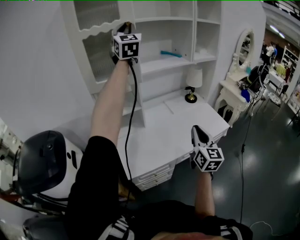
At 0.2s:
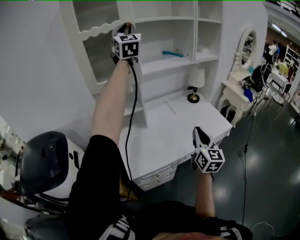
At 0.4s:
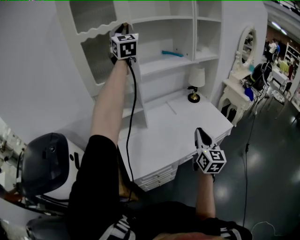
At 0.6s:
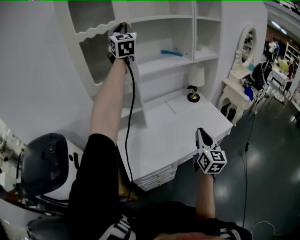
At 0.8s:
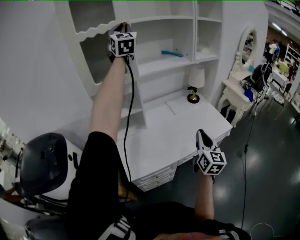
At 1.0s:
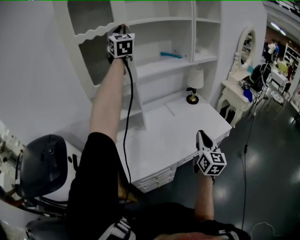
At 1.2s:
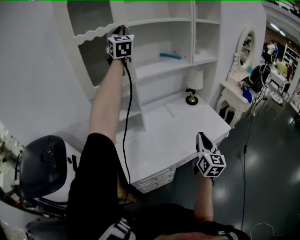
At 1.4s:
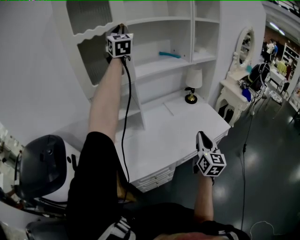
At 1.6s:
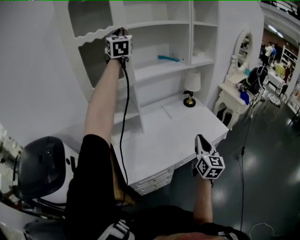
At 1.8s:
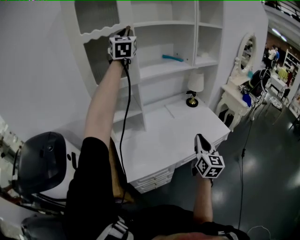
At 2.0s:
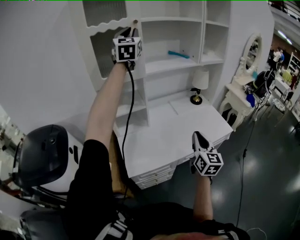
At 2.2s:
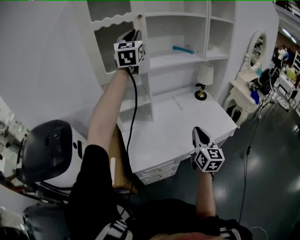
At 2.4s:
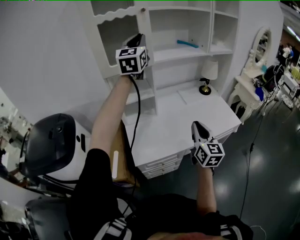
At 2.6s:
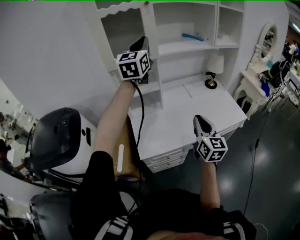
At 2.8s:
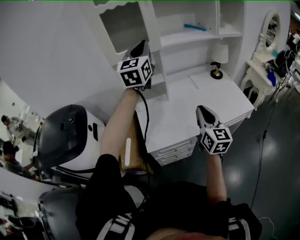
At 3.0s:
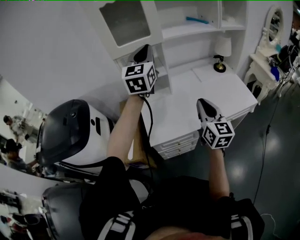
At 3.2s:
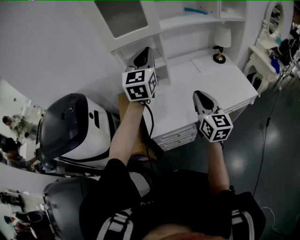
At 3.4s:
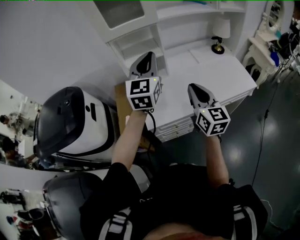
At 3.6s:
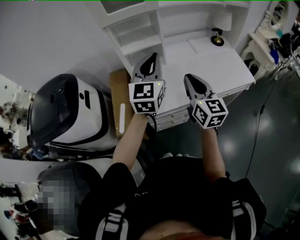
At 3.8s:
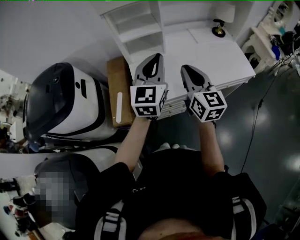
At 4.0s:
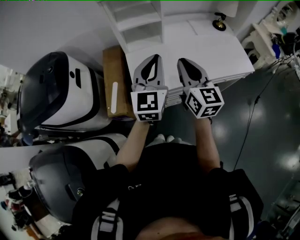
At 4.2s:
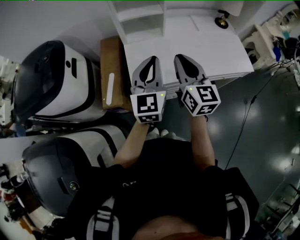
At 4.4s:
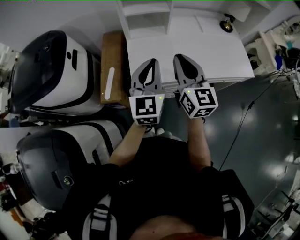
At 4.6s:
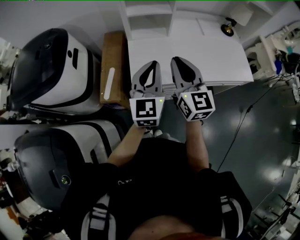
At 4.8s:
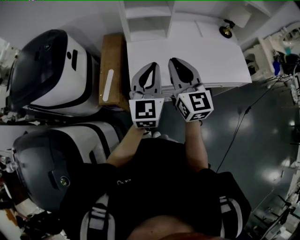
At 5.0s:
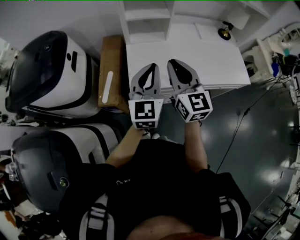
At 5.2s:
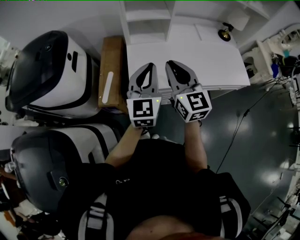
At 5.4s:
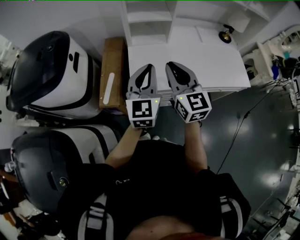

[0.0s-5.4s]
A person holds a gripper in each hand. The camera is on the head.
0.0s to 1.4s: The left gripper heads forward, covering some 5 cm.
1.4s to 2.8s: The left gripper goes approximately 25 cm downward and backward, and changes its angle by some 20 degrees. Meanwhile the right gripper moves to the left, some 10 cm.
2.8s to 4.0s: The right gripper goes about 10 cm to the left; the left gripper moves downward and backward, roughly 30 cm.
4.0s to 5.4s: The grippers both shift to the left by some 5 cm.

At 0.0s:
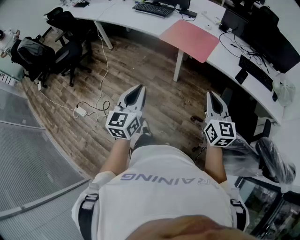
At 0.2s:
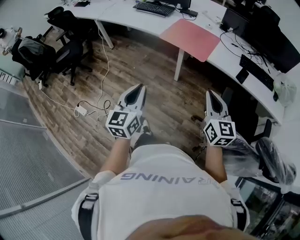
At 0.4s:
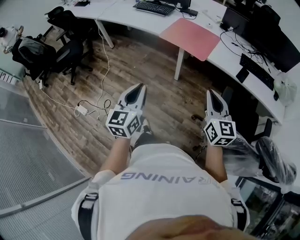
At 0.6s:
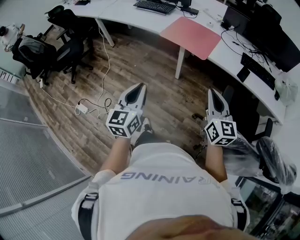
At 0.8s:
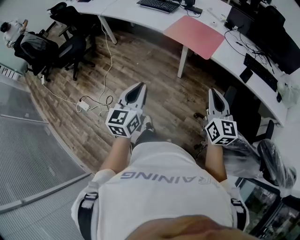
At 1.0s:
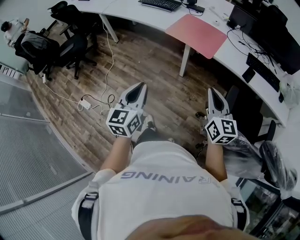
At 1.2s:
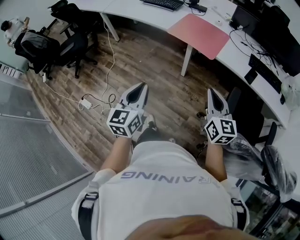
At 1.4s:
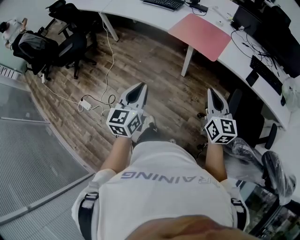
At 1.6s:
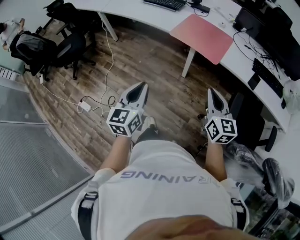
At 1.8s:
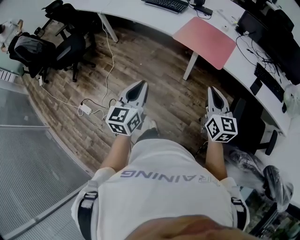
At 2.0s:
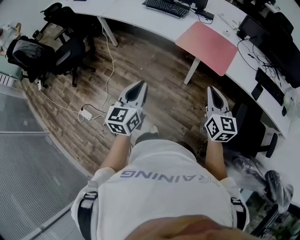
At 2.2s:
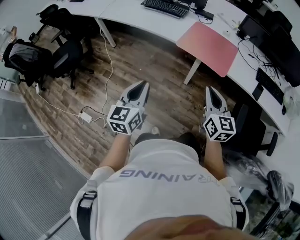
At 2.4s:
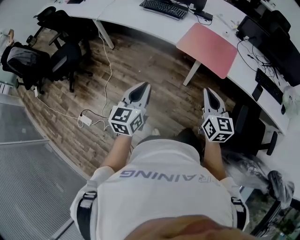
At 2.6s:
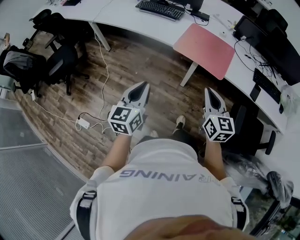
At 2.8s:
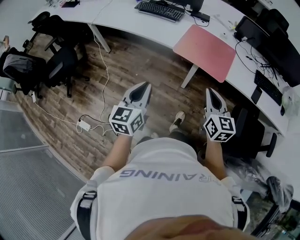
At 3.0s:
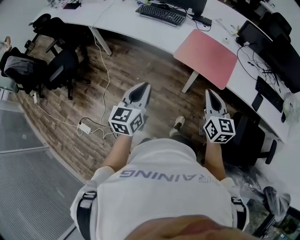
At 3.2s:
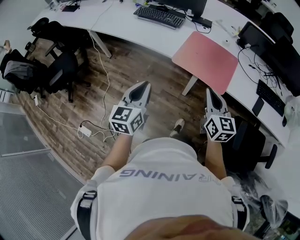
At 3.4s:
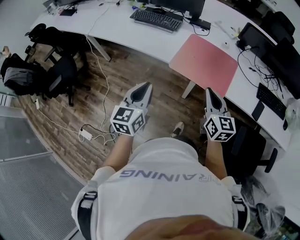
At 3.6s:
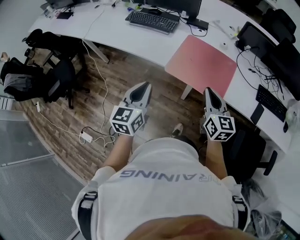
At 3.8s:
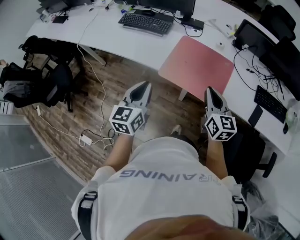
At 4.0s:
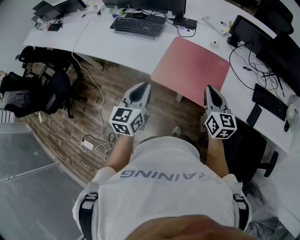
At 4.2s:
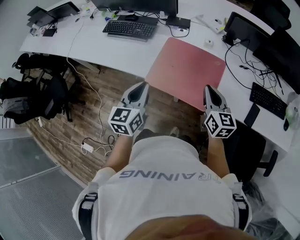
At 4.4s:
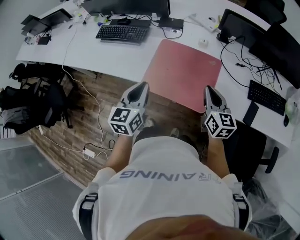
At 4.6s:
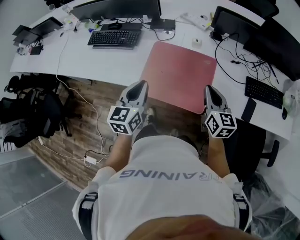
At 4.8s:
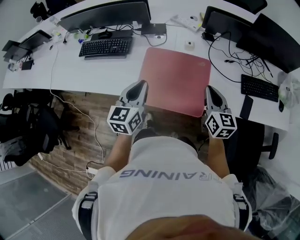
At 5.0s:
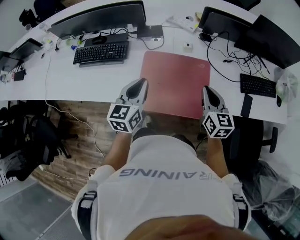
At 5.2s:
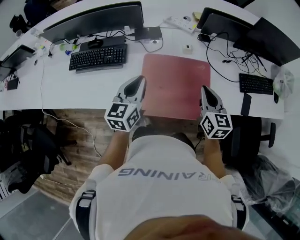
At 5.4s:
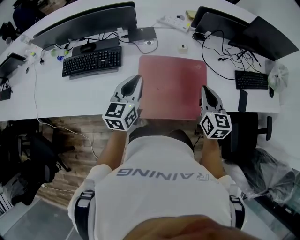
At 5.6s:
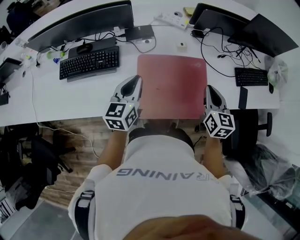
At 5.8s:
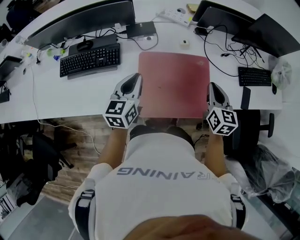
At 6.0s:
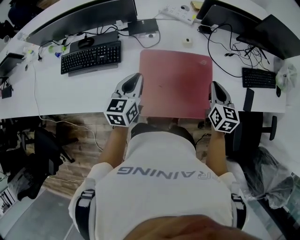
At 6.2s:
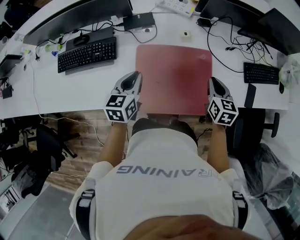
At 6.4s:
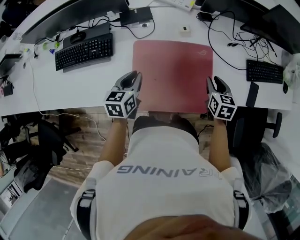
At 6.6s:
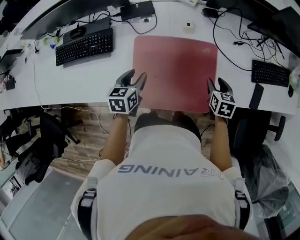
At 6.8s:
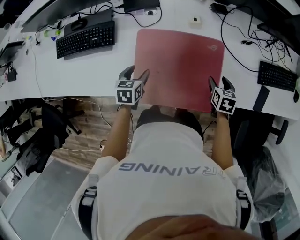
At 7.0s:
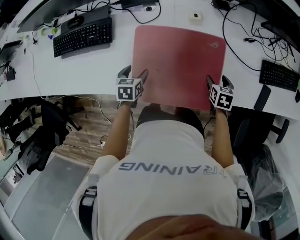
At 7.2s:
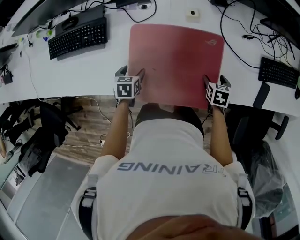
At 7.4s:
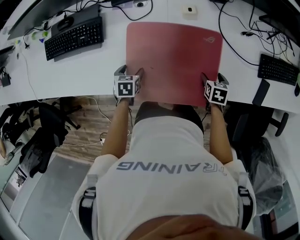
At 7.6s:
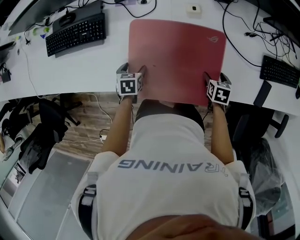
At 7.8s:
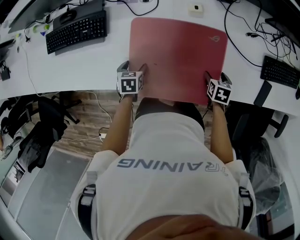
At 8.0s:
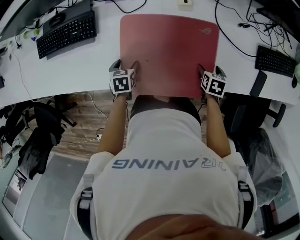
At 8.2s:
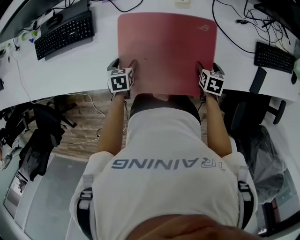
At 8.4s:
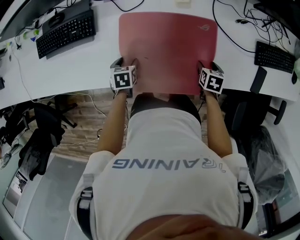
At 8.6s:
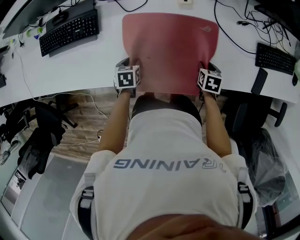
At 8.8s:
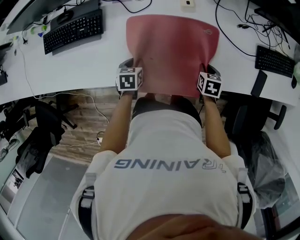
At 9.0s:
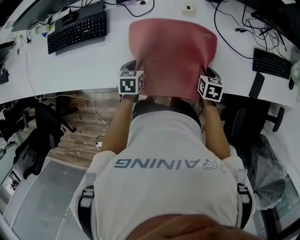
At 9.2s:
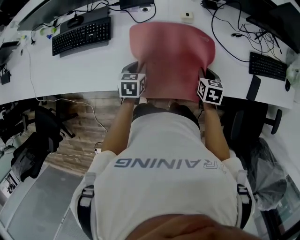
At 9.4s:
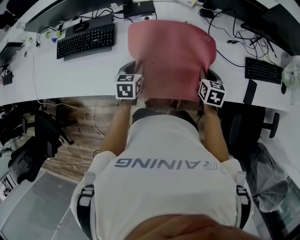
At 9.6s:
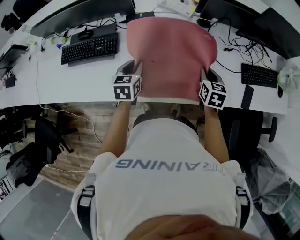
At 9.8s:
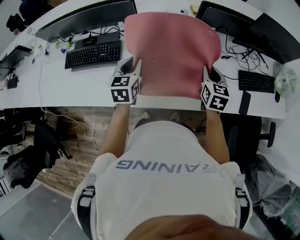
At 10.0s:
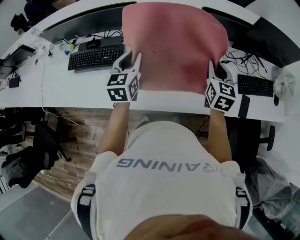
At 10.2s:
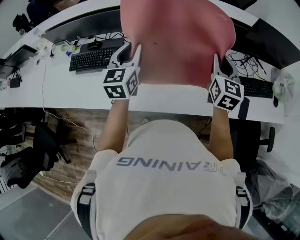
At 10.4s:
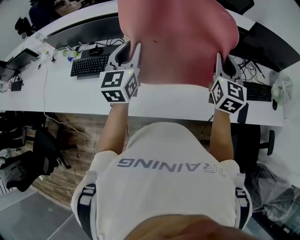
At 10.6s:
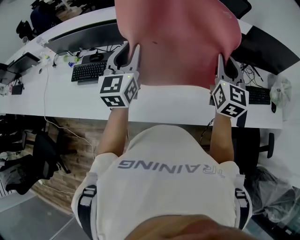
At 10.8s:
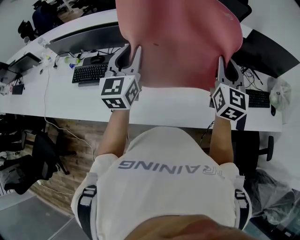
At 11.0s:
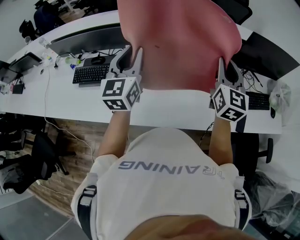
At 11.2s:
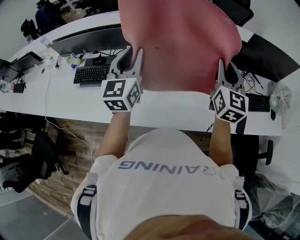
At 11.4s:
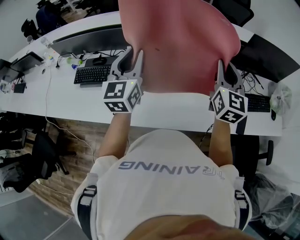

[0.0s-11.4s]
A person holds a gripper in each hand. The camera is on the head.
0.0s to 1.4s: The right gripper shifts approximately 5 cm forward. Meanwhile the left gripper ends up approximately 5 cm from where it was.
1.4s to 2.8s: Both grippers move forward and to the left, about 25 cm.
2.8s to 4.2s: Both grippers travel together forward and to the right, about 35 cm.
4.2s to 5.6s: The right gripper ends up about 10 cm from where it was, and changes its angle by some 30 degrees, while the left gripper changes place by about 25 cm, and swivels approximately 20 degrees.
5.6s to 7.2s: The grippers both shift downward by about 30 cm. The left gripper angles its fingers downward, by roughly 50 degrees, and opens its fingers. The right gripper tips its fingers downward by roughly 40 degrees, and opens up.
7.2s to 8.6s: The left gripper closes up; the right gripper closes.
8.6s to 10.0s: Both grippers travel together upward, approximately 35 cm. The right gripper tilts its fingers roughly 50 degrees upward. Meanwhile the left gripper points its fingers some 50 degrees further upward.
10.0s to 11.4s: The two grippers go approximately 15 cm upward. The left gripper changes its angle by approximately 20 degrees.

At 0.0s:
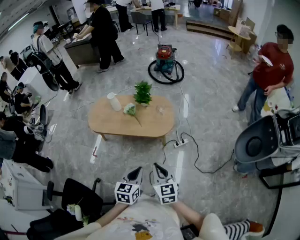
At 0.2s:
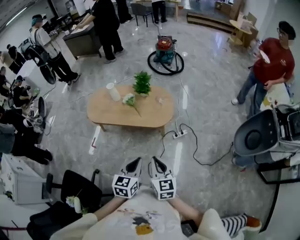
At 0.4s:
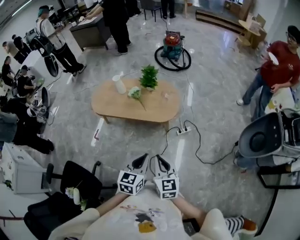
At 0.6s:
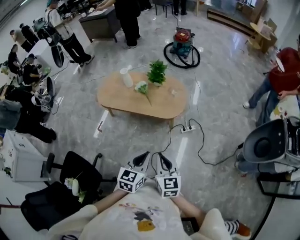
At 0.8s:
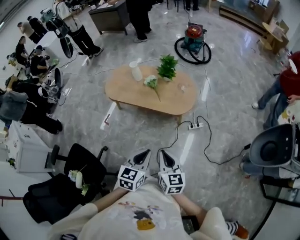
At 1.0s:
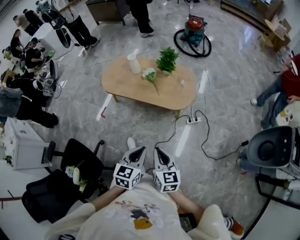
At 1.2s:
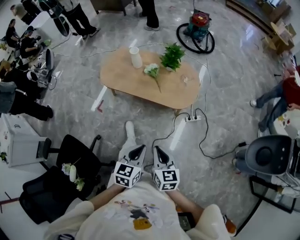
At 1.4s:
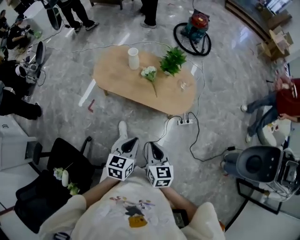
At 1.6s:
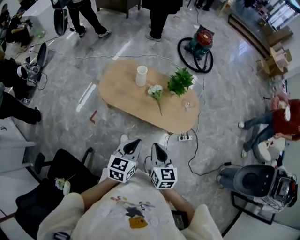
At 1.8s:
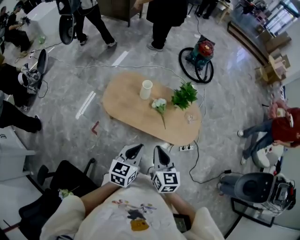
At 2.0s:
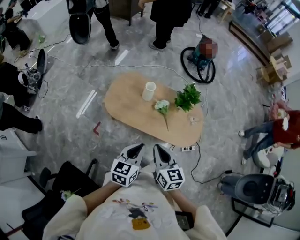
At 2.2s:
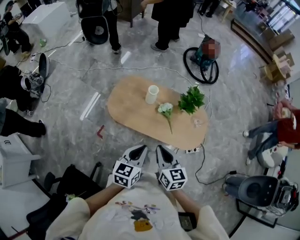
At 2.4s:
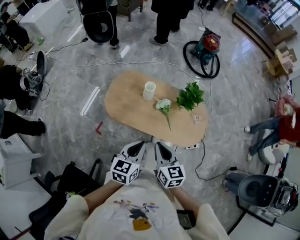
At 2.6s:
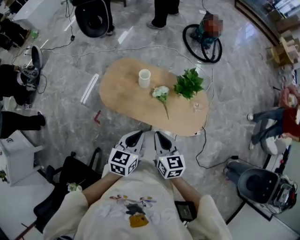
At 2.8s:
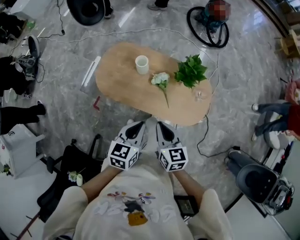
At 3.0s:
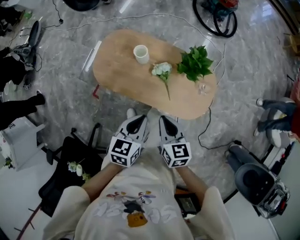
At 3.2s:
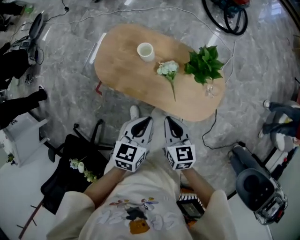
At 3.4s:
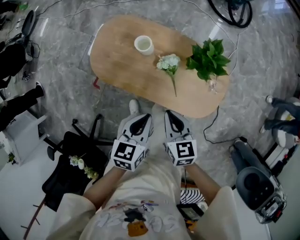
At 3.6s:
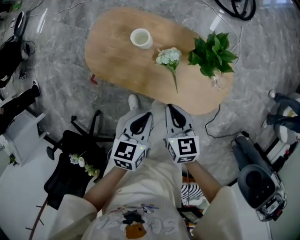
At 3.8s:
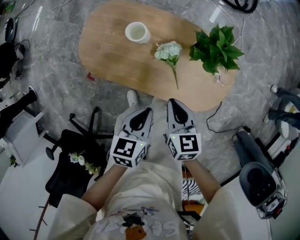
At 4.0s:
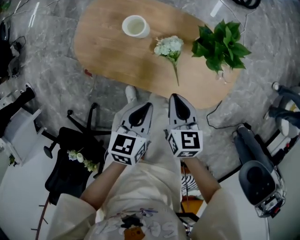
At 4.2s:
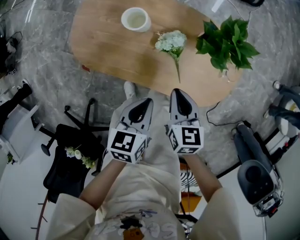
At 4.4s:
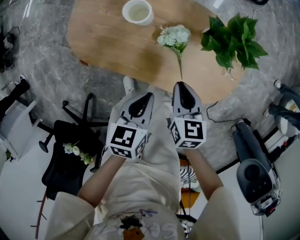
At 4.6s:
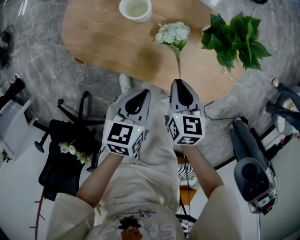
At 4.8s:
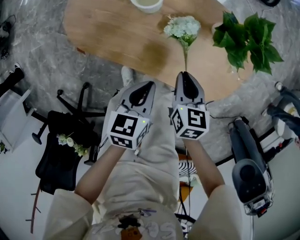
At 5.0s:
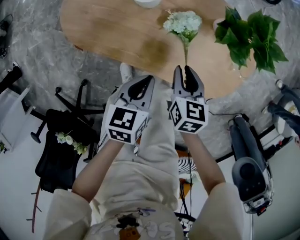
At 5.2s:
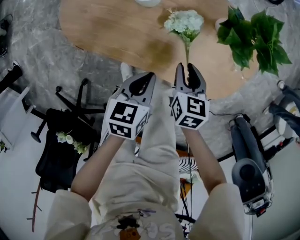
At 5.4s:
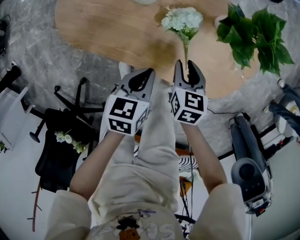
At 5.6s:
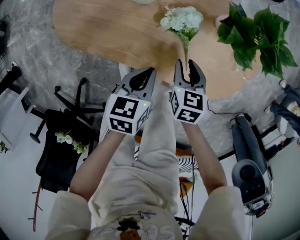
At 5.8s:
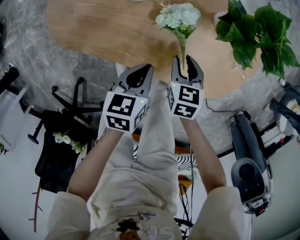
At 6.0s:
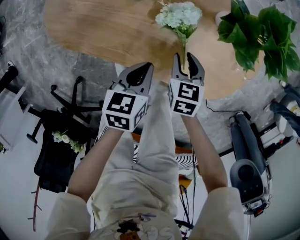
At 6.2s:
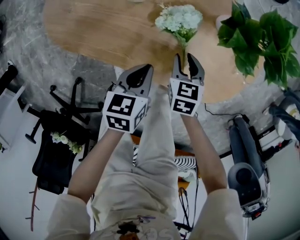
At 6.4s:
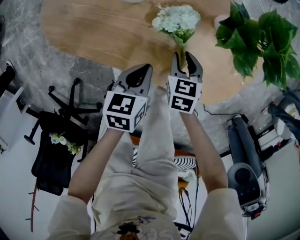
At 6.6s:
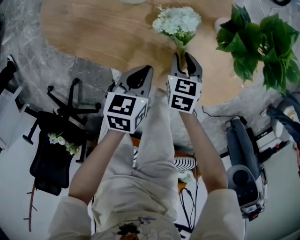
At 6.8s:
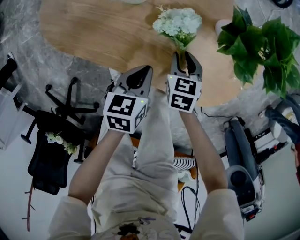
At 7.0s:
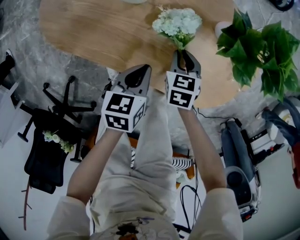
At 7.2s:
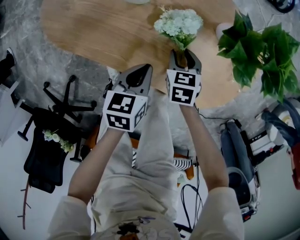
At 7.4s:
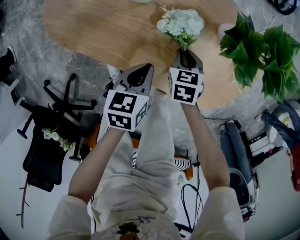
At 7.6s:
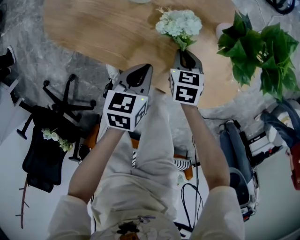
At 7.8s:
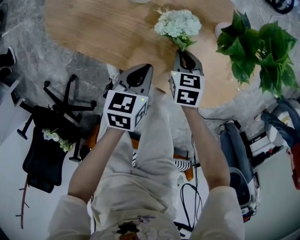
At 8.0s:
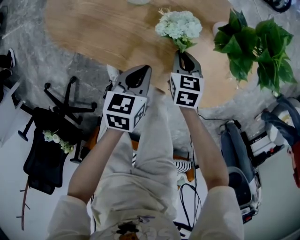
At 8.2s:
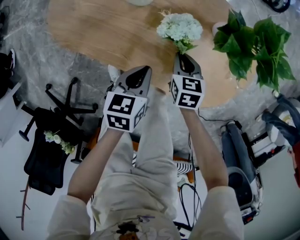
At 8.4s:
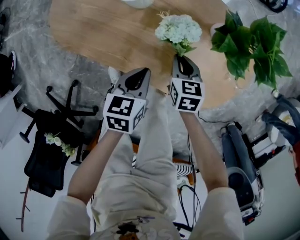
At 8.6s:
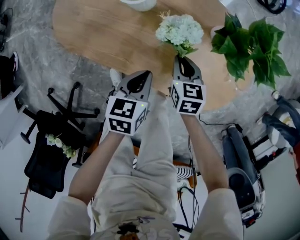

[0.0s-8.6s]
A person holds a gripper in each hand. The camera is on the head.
0.0s to 1.4s: The two grippers go approximately 25 cm to the left and forward.
1.4s to 2.8s: Both grippers travel together forward, approximately 30 cm.
2.8s to 4.4s: The right gripper shifts about 30 cm downward and forward. Meanwhile the left gripper travels downward by some 25 cm.
4.4s to 5.8s: The grippers both shift downward by roughly 15 cm. The right gripper opens its fingers.
5.8s to 7.2s: The right gripper is displaced downward by about 5 cm.
7.2s to 8.6s: The right gripper is displaced upward by approximately 5 cm, and closes.
